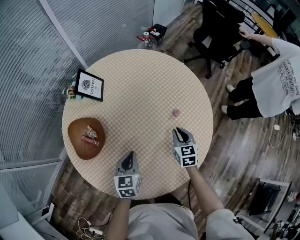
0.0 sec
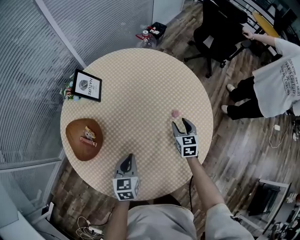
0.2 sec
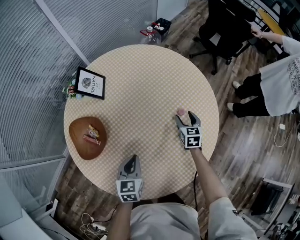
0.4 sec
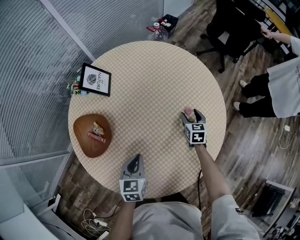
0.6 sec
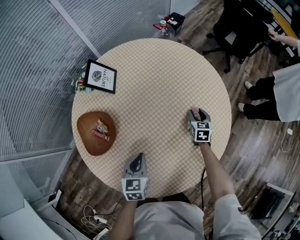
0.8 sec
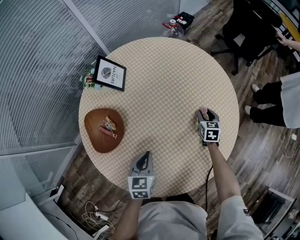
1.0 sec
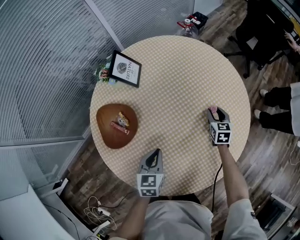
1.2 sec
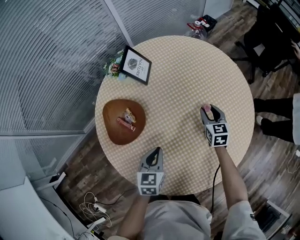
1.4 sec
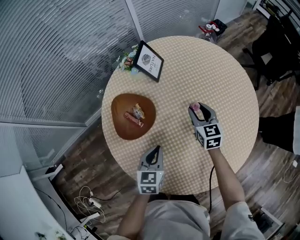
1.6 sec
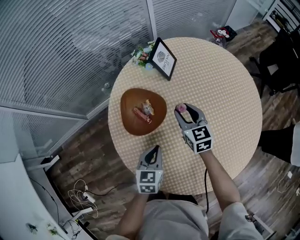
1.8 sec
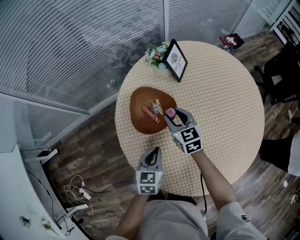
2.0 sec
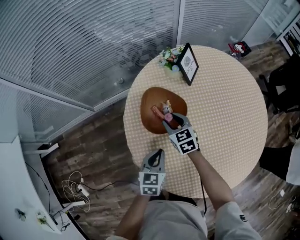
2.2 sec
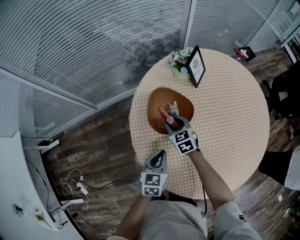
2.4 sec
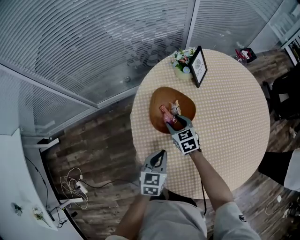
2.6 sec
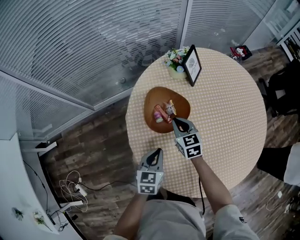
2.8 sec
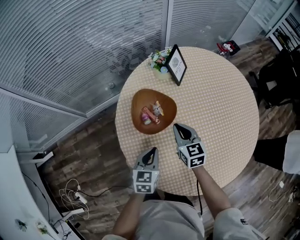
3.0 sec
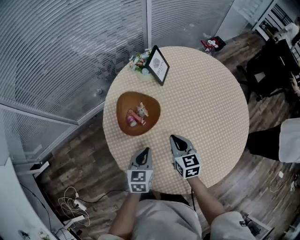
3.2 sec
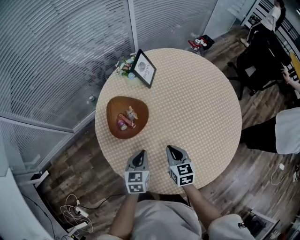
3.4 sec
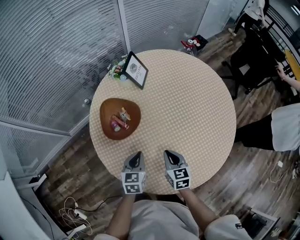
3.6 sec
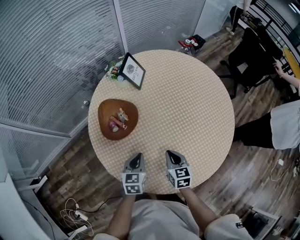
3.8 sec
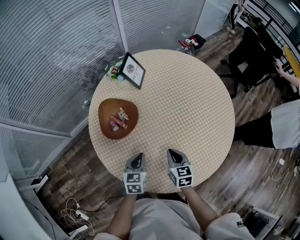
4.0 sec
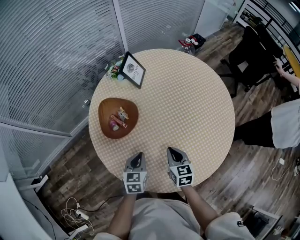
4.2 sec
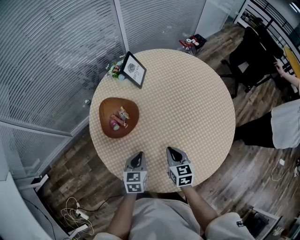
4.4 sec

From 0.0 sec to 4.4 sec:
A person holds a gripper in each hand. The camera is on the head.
From 0.0 sec to 1.4 sec: The right gripper is displaced forward and to the left by roughly 15 cm, and opens its fingers; the left gripper heads to the left, covering some 5 cm.
From 1.4 sec to 3.0 sec: The right gripper swings up and down, roughly 10 cm each way, with 2 reversals, changes its angle by approximately 20 degrees, and closes, while the left gripper ends up some 15 cm from where it was.
From 3.0 sec to 4.4 sec: The right gripper moves to the right and backward, approximately 20 cm, while the left gripper is displaced to the right by approximately 10 cm.

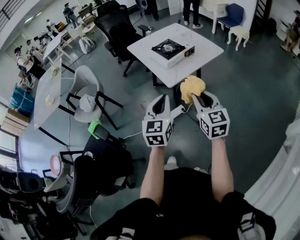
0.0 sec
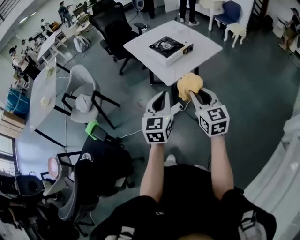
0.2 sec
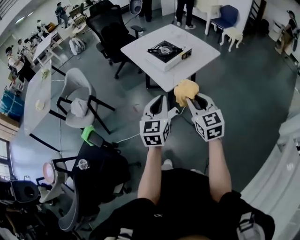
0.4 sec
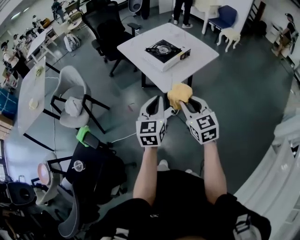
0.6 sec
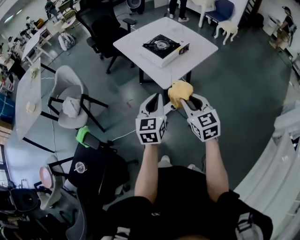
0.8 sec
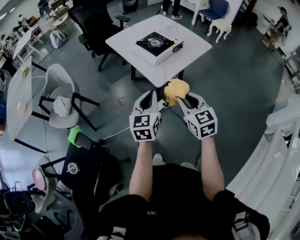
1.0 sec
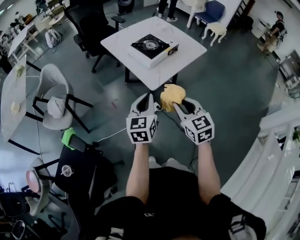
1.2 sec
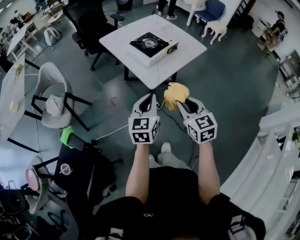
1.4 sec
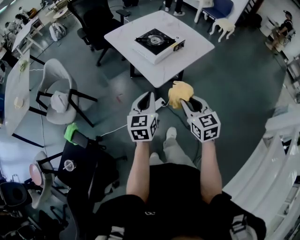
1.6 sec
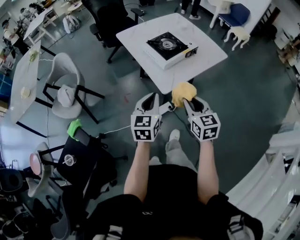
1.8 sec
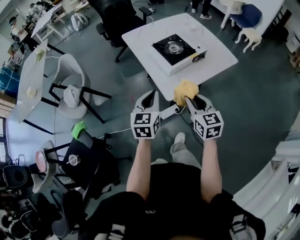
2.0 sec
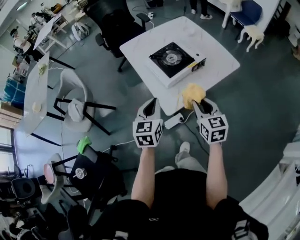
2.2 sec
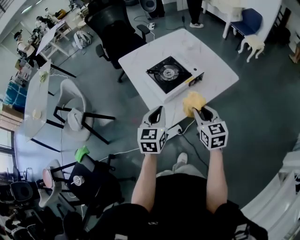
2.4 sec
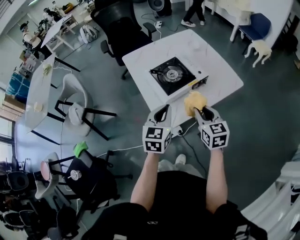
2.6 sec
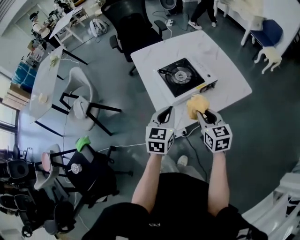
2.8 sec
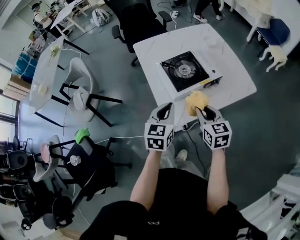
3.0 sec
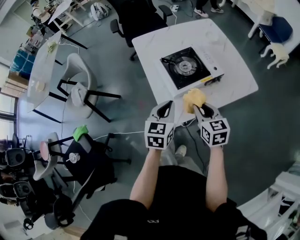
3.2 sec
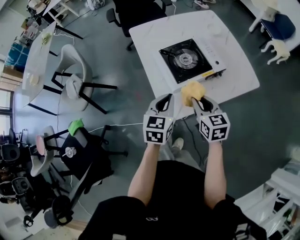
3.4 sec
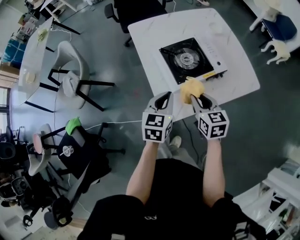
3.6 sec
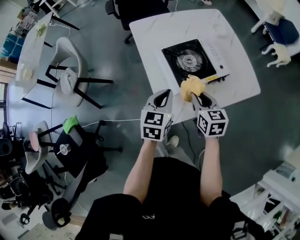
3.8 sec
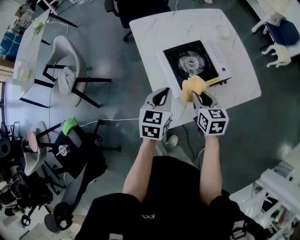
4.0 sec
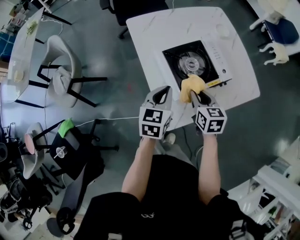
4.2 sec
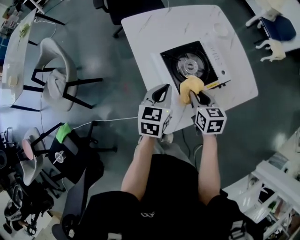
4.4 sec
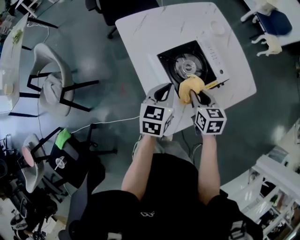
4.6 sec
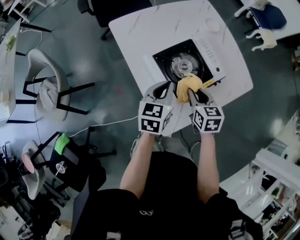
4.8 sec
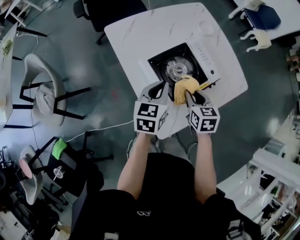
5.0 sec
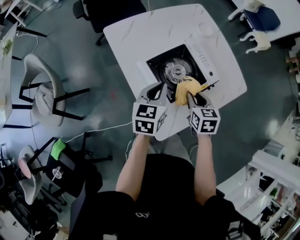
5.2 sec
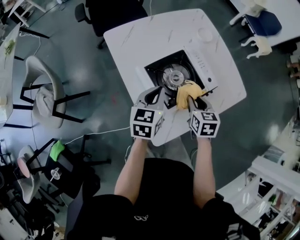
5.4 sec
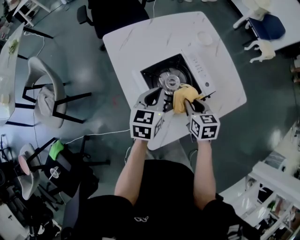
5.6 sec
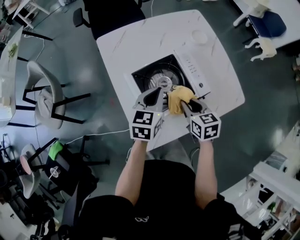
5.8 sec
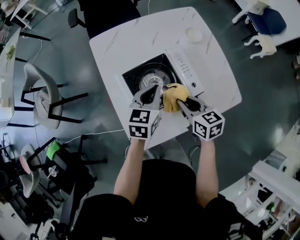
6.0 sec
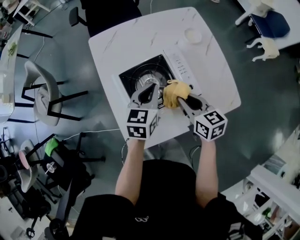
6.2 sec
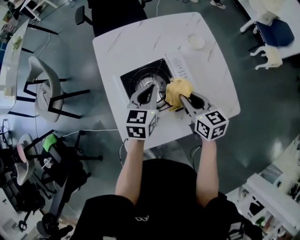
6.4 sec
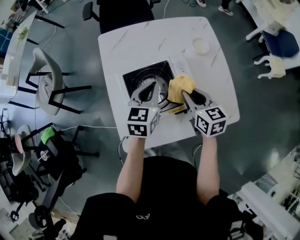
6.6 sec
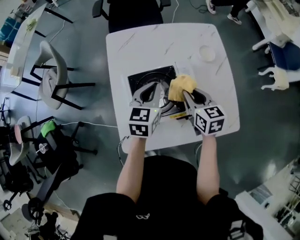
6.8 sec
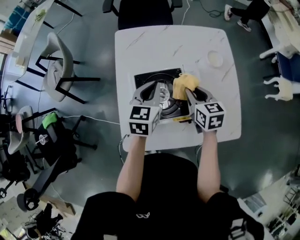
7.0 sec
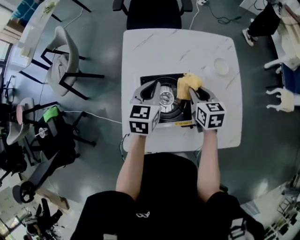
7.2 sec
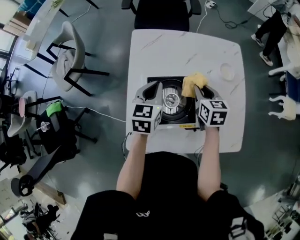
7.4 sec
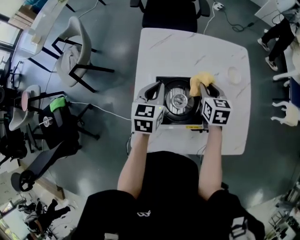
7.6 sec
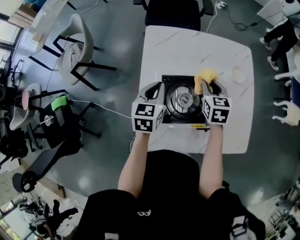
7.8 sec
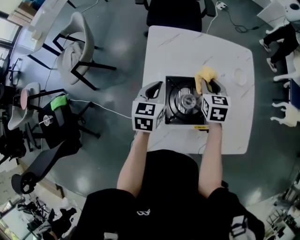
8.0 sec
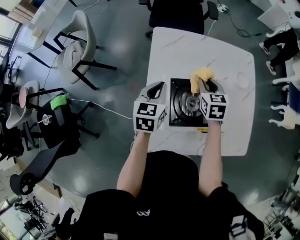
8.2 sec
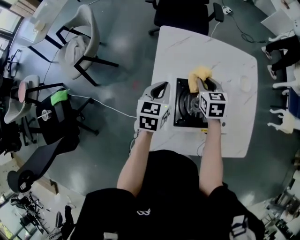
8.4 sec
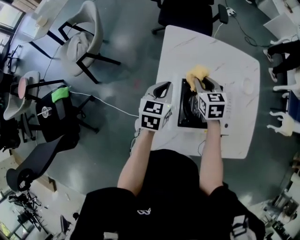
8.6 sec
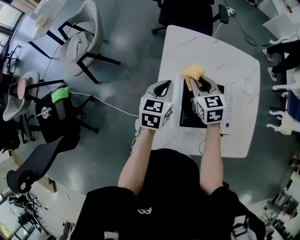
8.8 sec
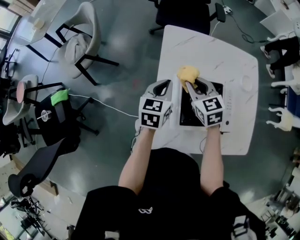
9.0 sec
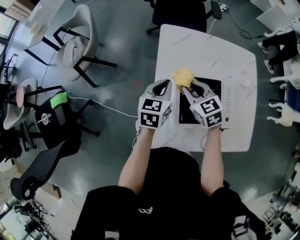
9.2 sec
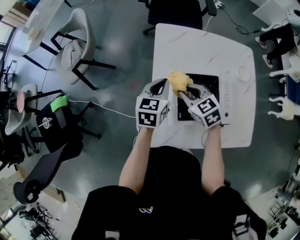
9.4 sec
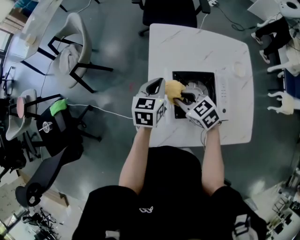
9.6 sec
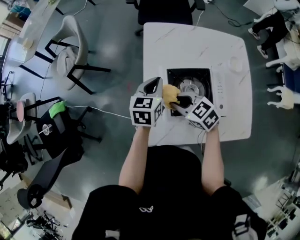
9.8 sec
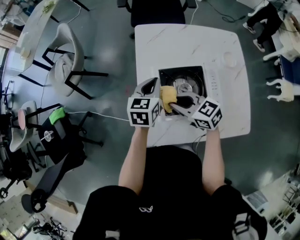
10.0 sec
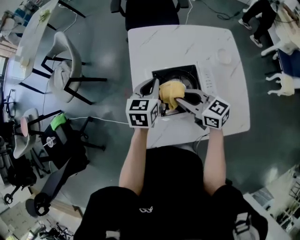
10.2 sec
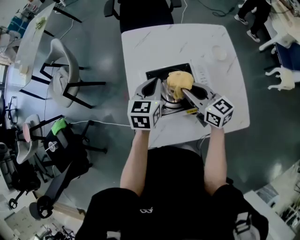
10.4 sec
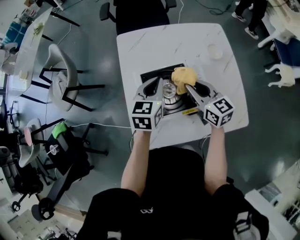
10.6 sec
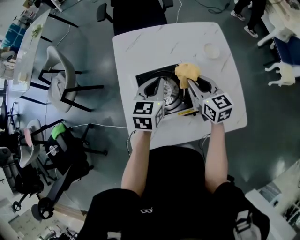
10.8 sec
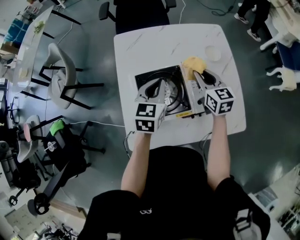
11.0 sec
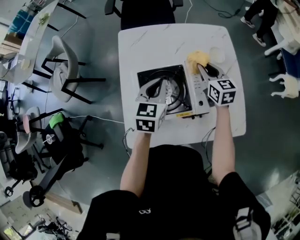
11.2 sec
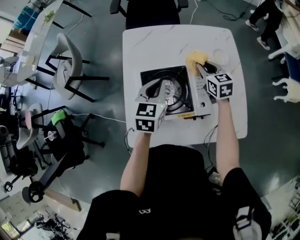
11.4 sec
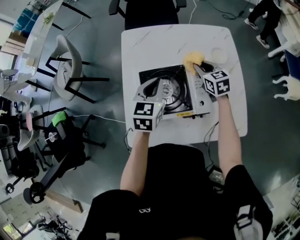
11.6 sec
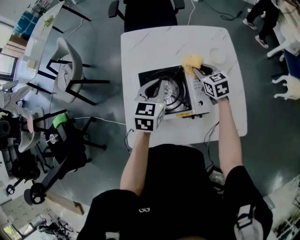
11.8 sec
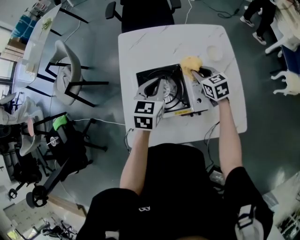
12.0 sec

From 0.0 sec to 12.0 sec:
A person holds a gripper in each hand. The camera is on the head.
From 0.0 sec to 1.6 sec: Both grippers move forward and downward, roughly 15 cm.
From 1.6 sec to 3.0 sec: The two grippers go approximately 25 cm forward.
From 3.0 sec to 4.4 sec: The grippers both shift forward and downward by about 15 cm.
From 4.4 sec to 6.0 sec: Both grippers travel together to the right and forward, some 15 cm.
From 6.0 sec to 7.6 sec: The right gripper is displaced forward by roughly 20 cm. Meanwhile the left gripper travels to the left and forward by approximately 10 cm, and rotates about 30 degrees.
From 7.6 sec to 9.0 sec: The right gripper moves to the left, some 20 cm, and turns by approximately 30 degrees. The left gripper heads to the left, covering roughly 10 cm.
From 9.0 sec to 10.4 sec: The right gripper travels backward and to the right by some 15 cm, and turns by roughly 30 degrees. Meanwhile the left gripper shifts some 10 cm to the right and backward.
From 10.4 sec to 12.0 sec: The left gripper goes some 5 cm to the right; the right gripper travels to the right, forward and downward by approximately 15 cm, and swivels roughly 30 degrees.

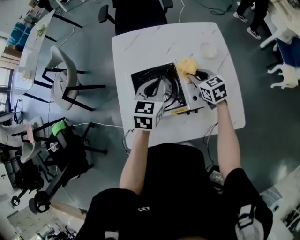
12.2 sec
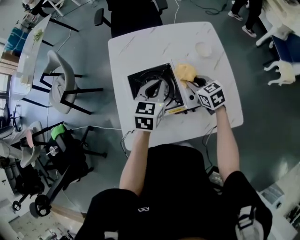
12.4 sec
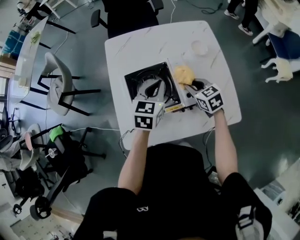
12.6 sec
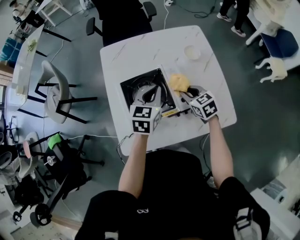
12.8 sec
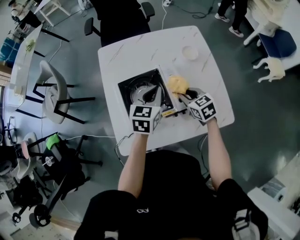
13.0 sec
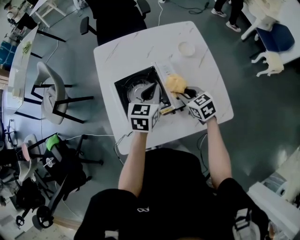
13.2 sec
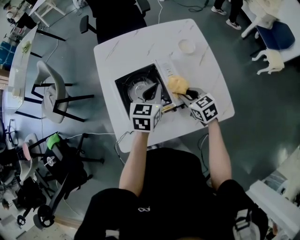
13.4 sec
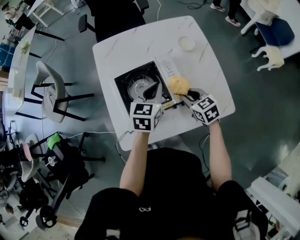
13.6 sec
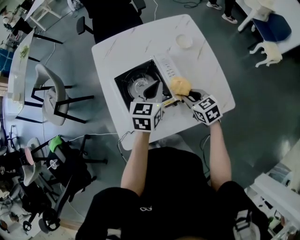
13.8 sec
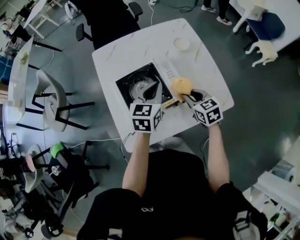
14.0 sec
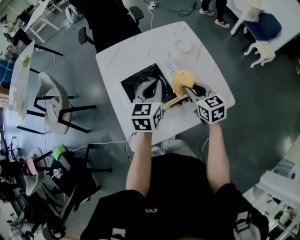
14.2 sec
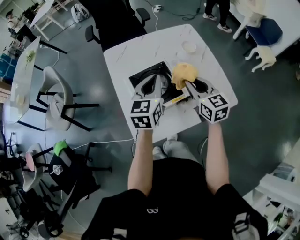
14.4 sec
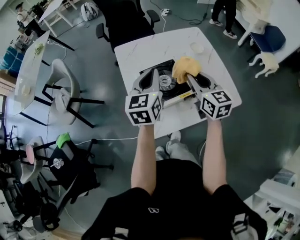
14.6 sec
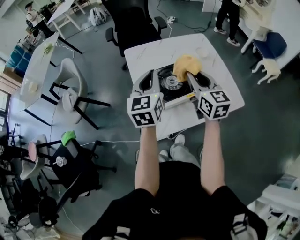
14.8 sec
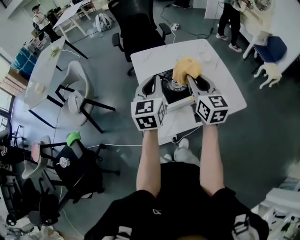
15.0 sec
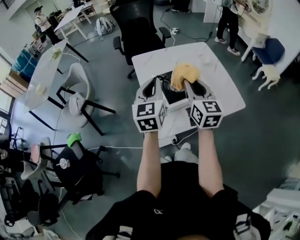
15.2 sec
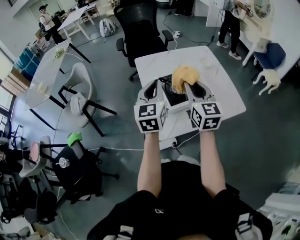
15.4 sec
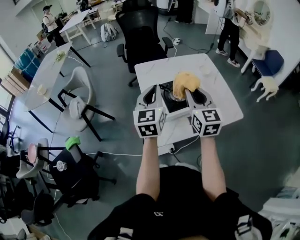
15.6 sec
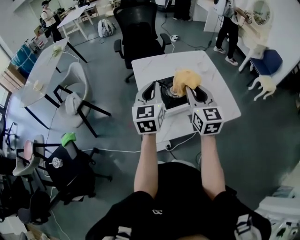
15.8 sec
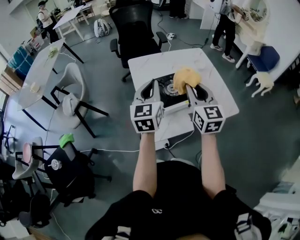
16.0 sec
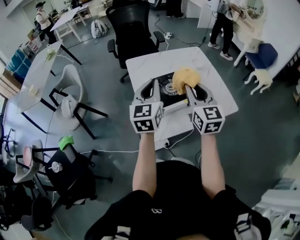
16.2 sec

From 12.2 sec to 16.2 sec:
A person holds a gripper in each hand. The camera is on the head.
From 12.2 sec to 13.6 sec: The right gripper goes approximately 15 cm backward; the left gripper heads to the right, covering some 5 cm.
From 13.6 sec to 14.8 sec: The left gripper heads to the left, upward and backward, covering about 25 cm, and swivels approximately 20 degrees, while the right gripper heads upward and to the left, covering about 25 cm, and angles its fingers upward, by roughly 30 degrees.
From 14.8 sec to 16.2 sec: The left gripper shifts by about 5 cm. The right gripper heads backward, covering approximately 5 cm.

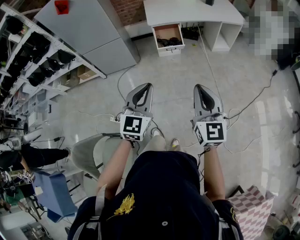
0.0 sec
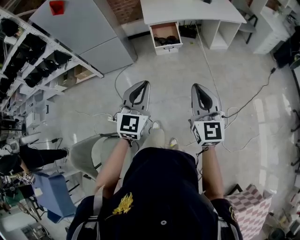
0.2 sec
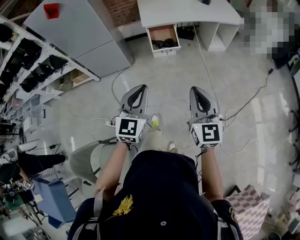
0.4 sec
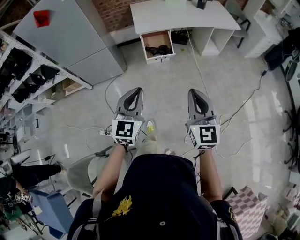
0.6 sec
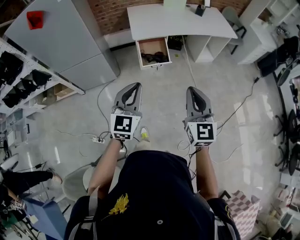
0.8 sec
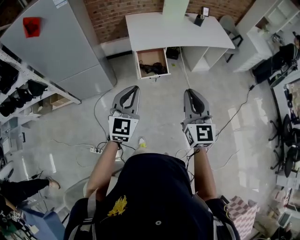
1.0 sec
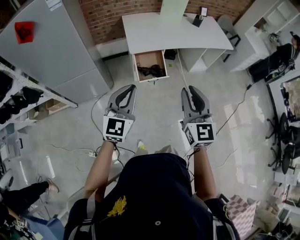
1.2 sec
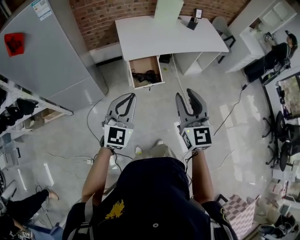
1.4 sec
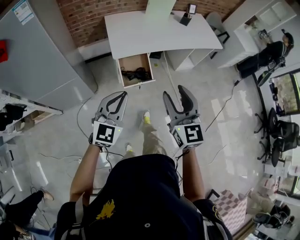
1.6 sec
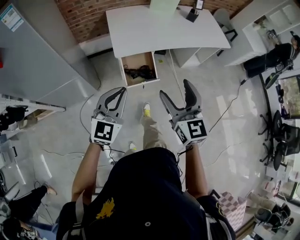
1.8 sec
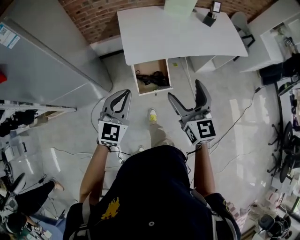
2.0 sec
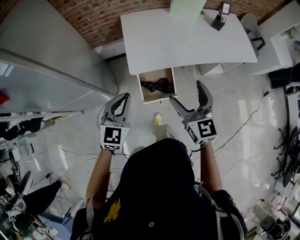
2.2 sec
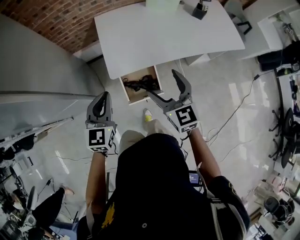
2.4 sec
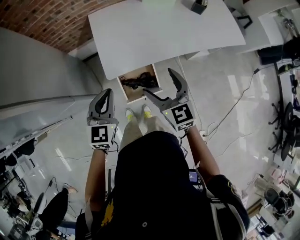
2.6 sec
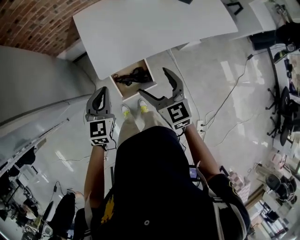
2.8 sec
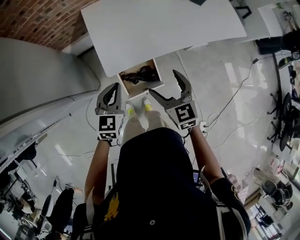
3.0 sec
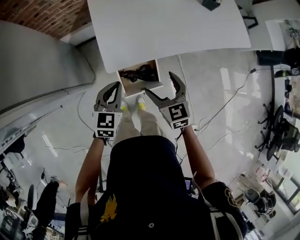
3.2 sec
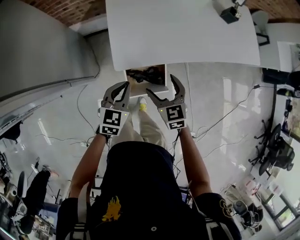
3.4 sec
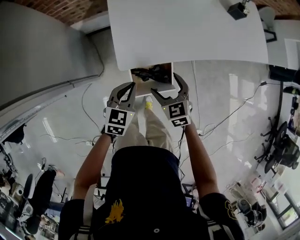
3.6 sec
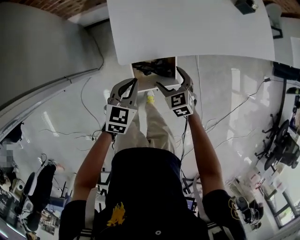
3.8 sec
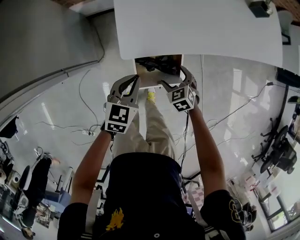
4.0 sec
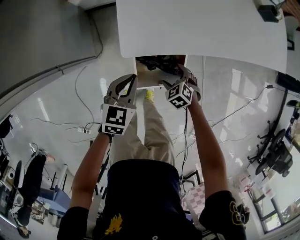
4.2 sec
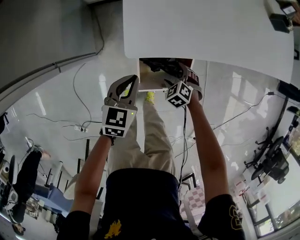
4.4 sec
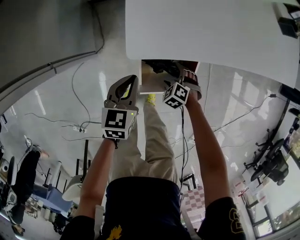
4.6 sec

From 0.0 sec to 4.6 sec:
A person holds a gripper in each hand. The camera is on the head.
From 0.0 sec to 1.6 sec: Both grippers are carried forward, some 50 cm. The right gripper opens up.
From 1.6 sec to 3.0 sec: The grippers both shift forward and downward by some 40 cm. The left gripper turns by about 30 degrees. Meanwhile the right gripper swivels some 20 degrees, and opens.
From 3.0 sec to 4.6 sec: The left gripper travels downward by some 30 cm, and changes its angle by about 20 degrees, while the right gripper travels downward by some 50 cm, and angles its fingers downward, by some 50 degrees.
